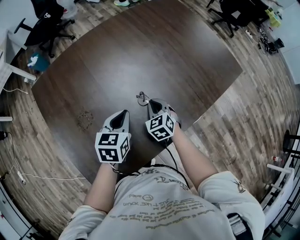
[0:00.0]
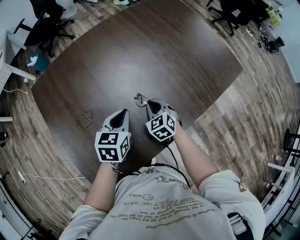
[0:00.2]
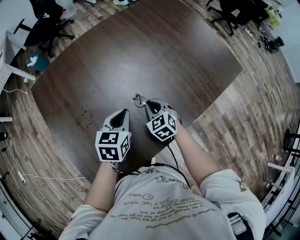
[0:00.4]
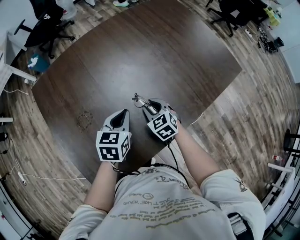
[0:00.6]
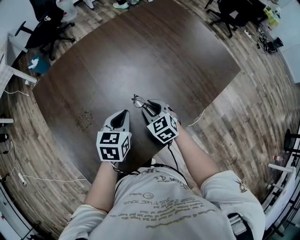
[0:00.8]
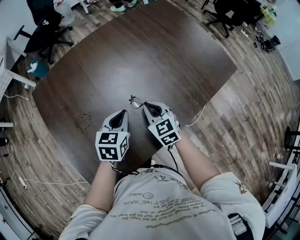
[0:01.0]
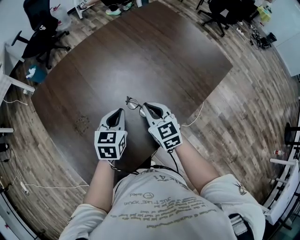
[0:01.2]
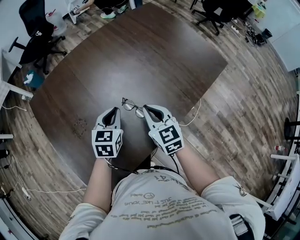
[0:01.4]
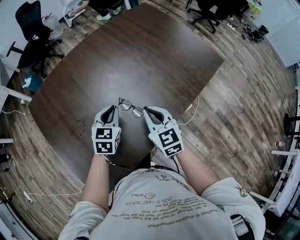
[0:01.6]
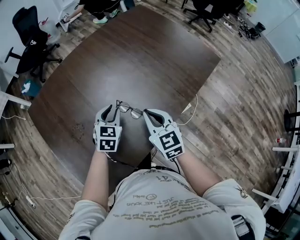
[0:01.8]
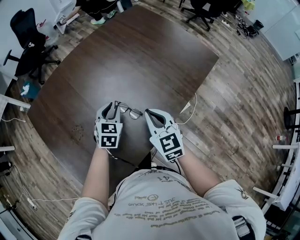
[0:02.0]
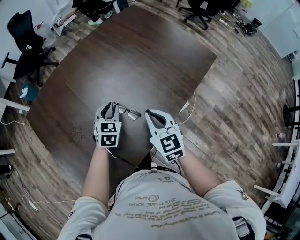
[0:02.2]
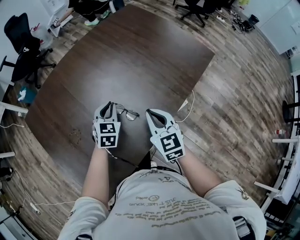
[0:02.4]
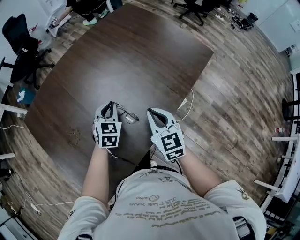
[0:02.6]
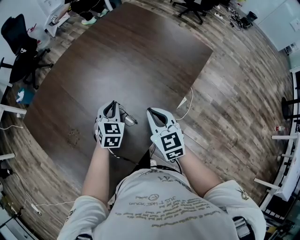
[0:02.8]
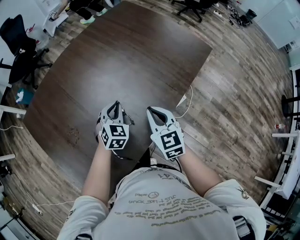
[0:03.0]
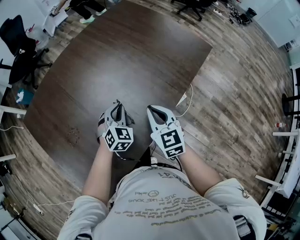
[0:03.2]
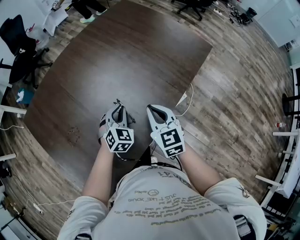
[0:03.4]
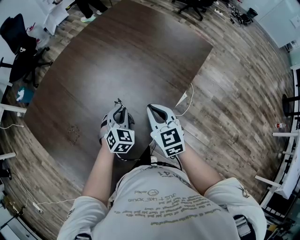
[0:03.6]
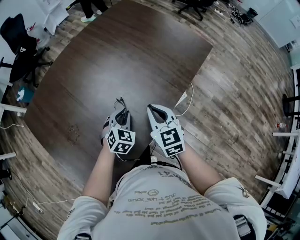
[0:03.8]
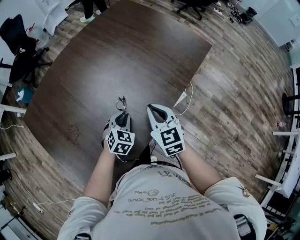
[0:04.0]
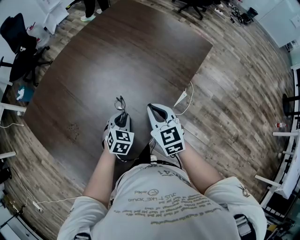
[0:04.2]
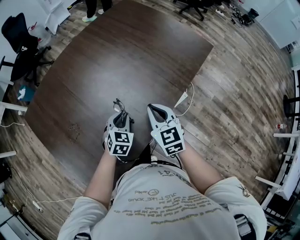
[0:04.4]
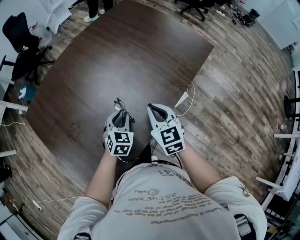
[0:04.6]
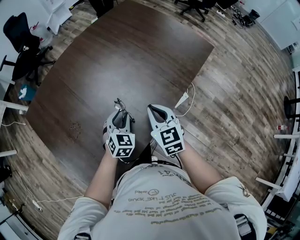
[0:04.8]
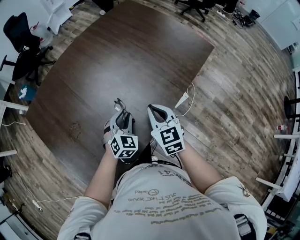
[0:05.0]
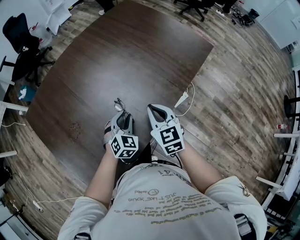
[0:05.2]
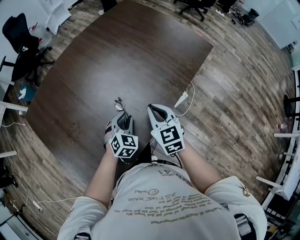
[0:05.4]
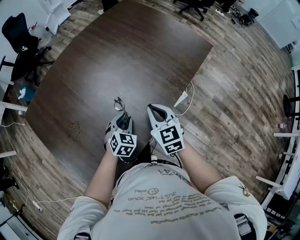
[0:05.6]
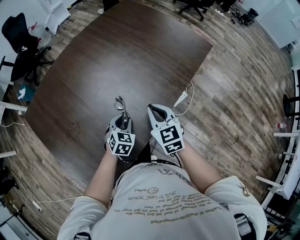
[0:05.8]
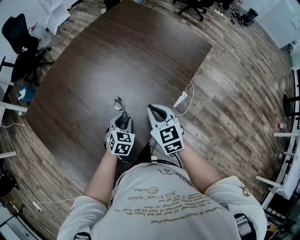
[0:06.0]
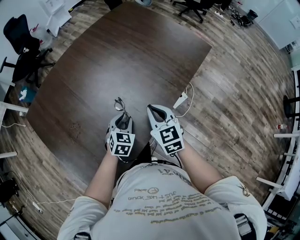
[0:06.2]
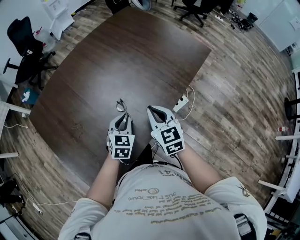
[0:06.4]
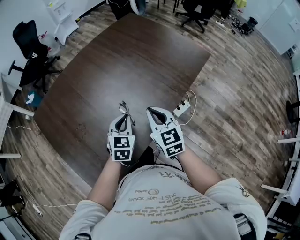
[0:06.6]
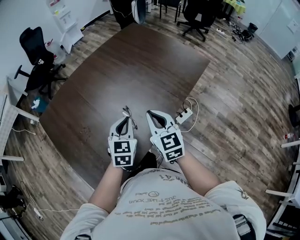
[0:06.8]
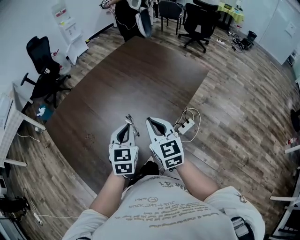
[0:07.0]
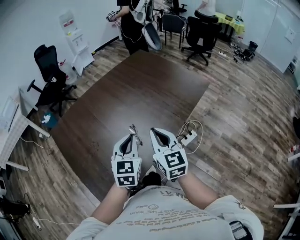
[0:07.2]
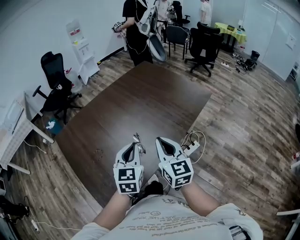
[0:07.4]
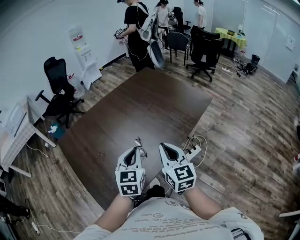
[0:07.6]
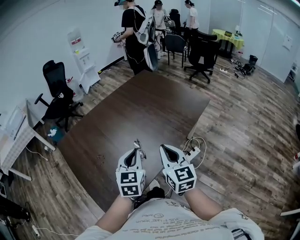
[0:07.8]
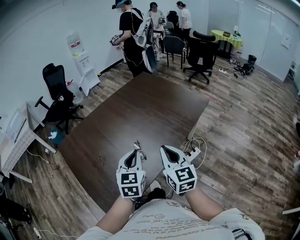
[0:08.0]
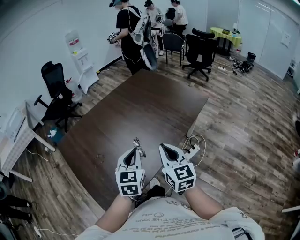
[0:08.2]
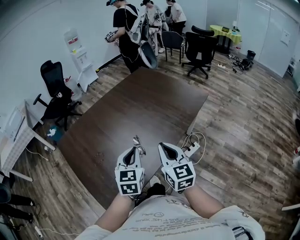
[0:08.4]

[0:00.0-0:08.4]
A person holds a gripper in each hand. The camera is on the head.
0:00.0 to 0:01.4: The right gripper is displaced upward by some 15 cm, swivels about 30 degrees, and opens and closes again.
0:01.4 to 0:02.8: Both grippers travel together to the right, about 5 cm. The left gripper changes its angle by about 20 degrees.
0:02.8 to 0:04.2: The left gripper shifts roughly 10 cm backward and downward.
0:04.2 to 0:05.6: The grippers make only small movements.
0:05.6 to 0:07.0: The right gripper moves upward and backward, approximately 15 cm. The left gripper is displaced upward by some 20 cm, turns by about 30 degrees, and closes its fingers.
0:07.0 to 0:08.4: The two grippers go approximately 5 cm backward.

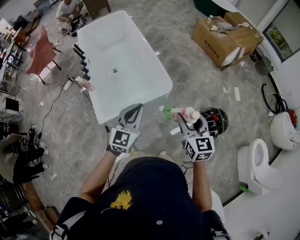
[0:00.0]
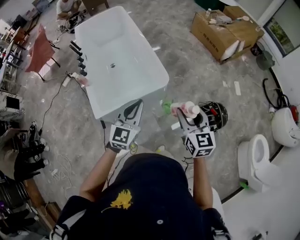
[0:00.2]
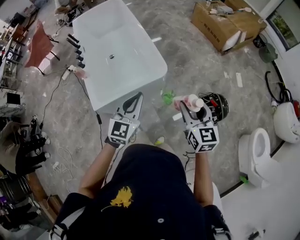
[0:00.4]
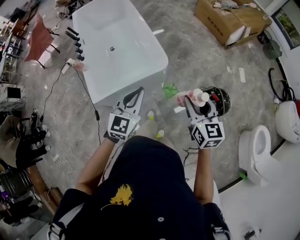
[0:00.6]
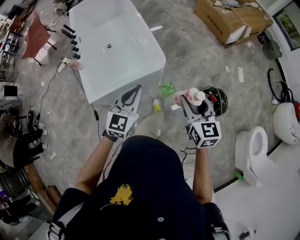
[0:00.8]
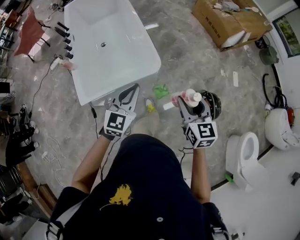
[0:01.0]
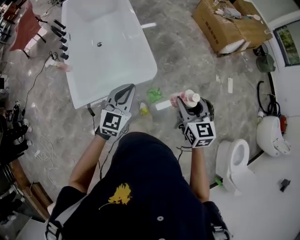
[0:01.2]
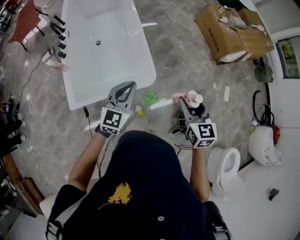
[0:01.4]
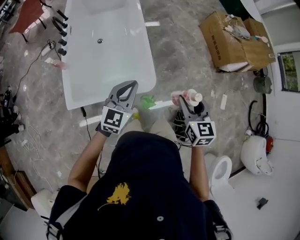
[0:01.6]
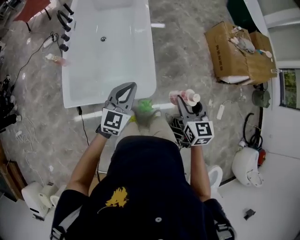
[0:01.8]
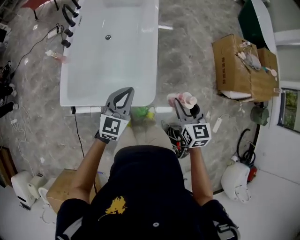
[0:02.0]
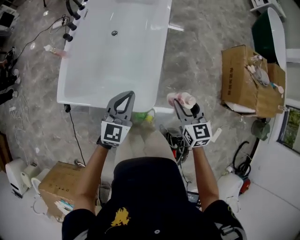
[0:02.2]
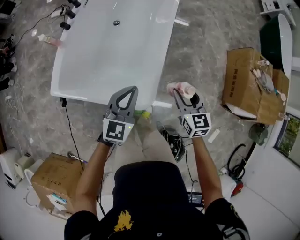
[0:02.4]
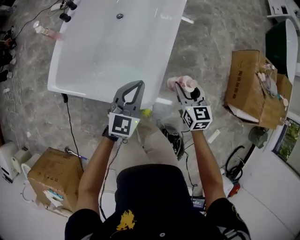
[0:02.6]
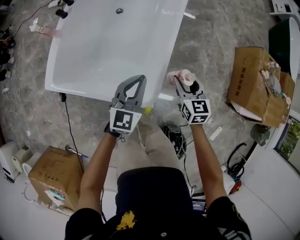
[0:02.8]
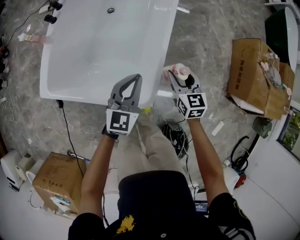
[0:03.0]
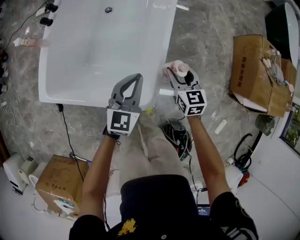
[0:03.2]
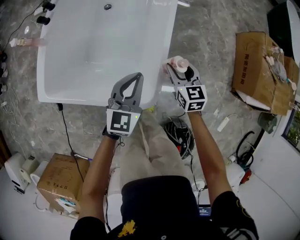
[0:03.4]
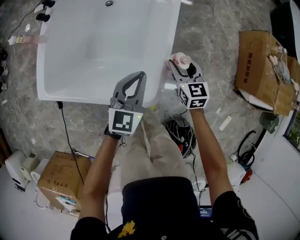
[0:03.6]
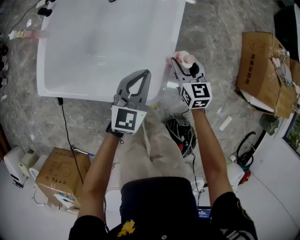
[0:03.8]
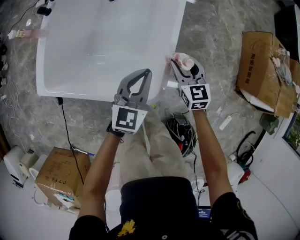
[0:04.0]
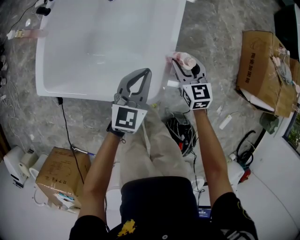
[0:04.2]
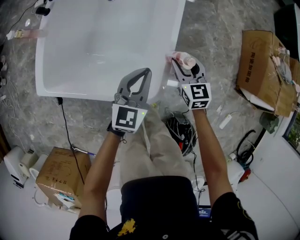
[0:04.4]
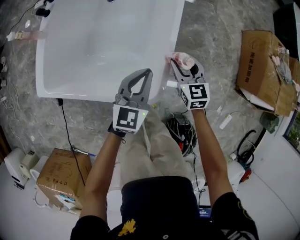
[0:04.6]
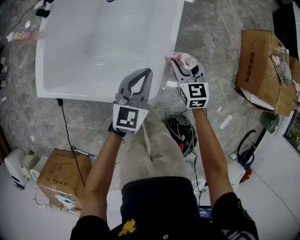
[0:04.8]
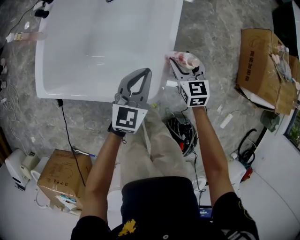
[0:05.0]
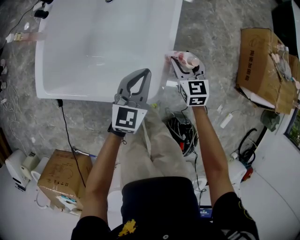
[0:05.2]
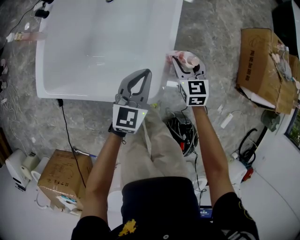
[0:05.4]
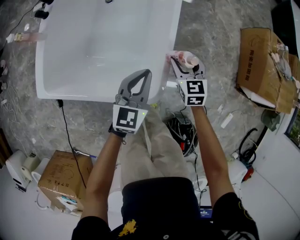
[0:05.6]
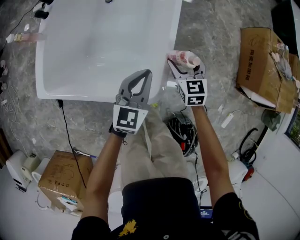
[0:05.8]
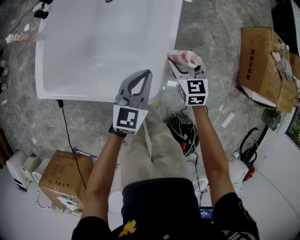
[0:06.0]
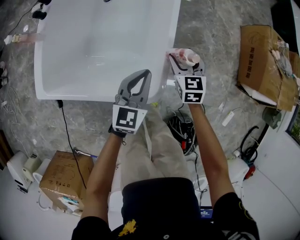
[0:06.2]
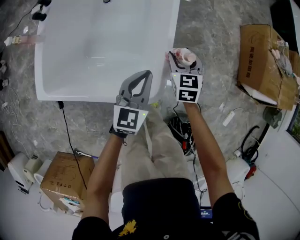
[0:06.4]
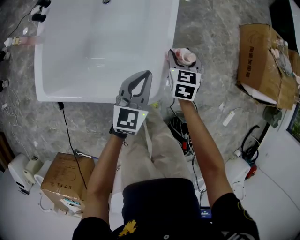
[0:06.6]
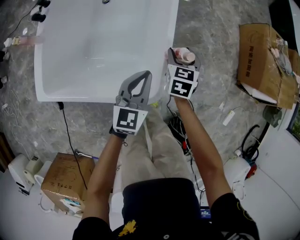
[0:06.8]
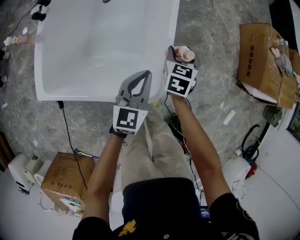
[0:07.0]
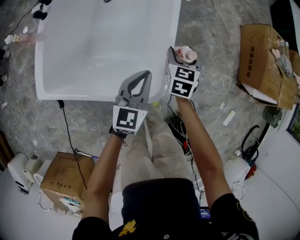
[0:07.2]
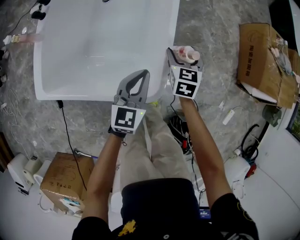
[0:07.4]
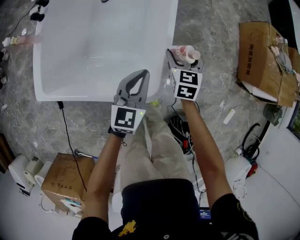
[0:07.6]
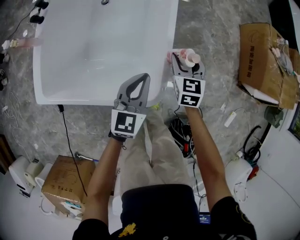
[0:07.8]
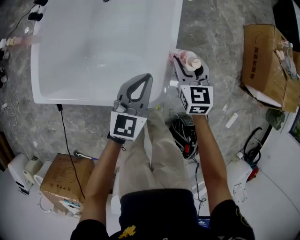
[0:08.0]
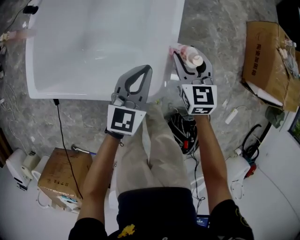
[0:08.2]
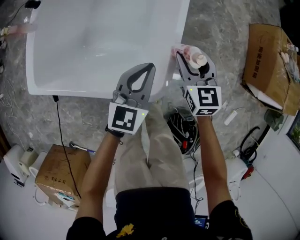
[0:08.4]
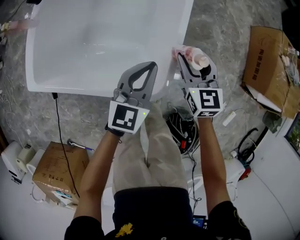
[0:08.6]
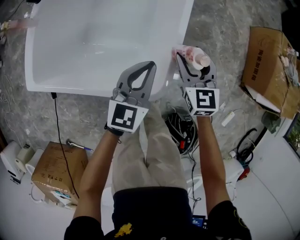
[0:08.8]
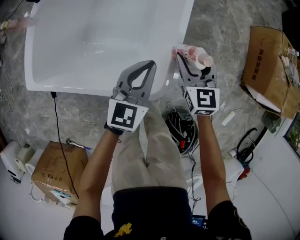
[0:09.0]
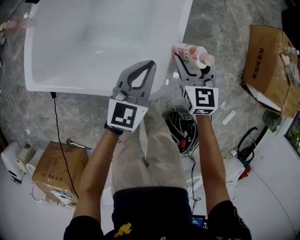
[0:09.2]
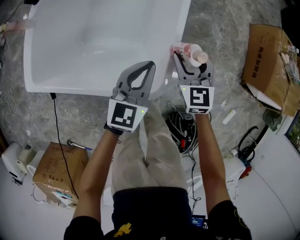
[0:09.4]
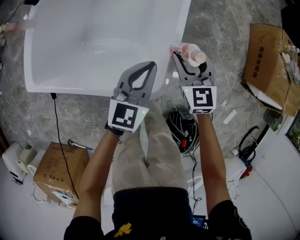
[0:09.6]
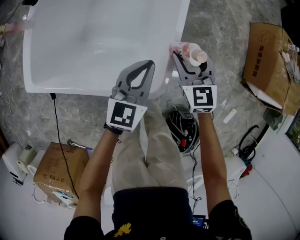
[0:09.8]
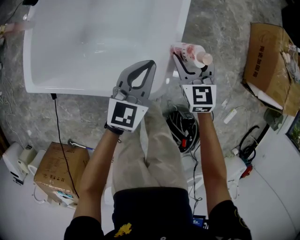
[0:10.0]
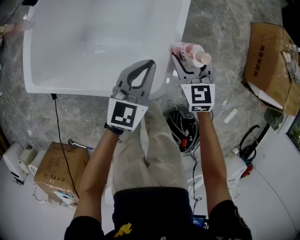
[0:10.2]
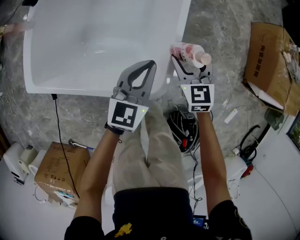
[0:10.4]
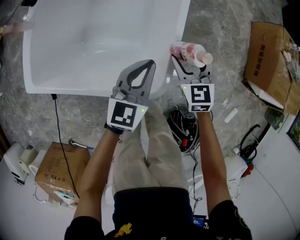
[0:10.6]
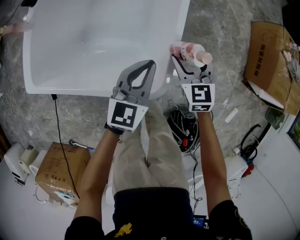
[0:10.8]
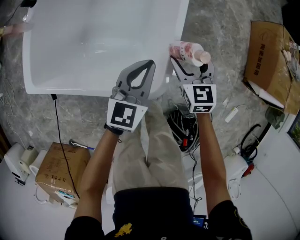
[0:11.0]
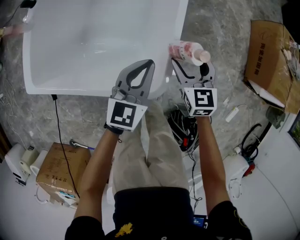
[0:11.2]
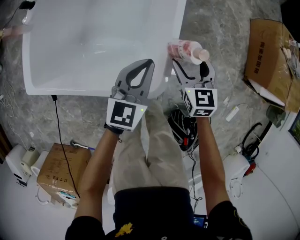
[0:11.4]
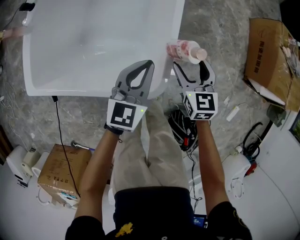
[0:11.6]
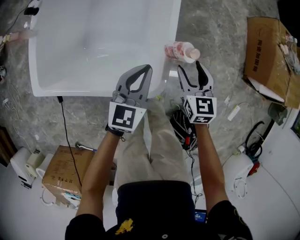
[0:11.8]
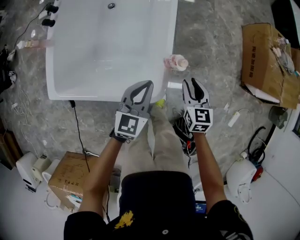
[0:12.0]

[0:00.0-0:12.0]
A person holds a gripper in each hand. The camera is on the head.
0:00.0 to 0:01.6: Both grippers travel together forward, about 25 cm.
0:01.6 to 0:03.0: The left gripper is displaced downward by approximately 20 cm, and swivels some 30 degrees, while the right gripper changes place by roughly 40 cm, and swivels roughly 30 degrees.
0:03.0 to 0:04.4: Both grippers move downward, approximately 5 cm.
0:04.4 to 0:06.0: The right gripper opens its fingers.
0:09.0 to 0:10.4: The grippers move only a little.
0:10.4 to 0:12.0: The left gripper shifts about 10 cm upward; the right gripper goes roughly 15 cm upward, to the right and backward, turns by approximately 20 degrees, and closes its fingers.

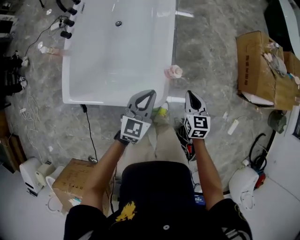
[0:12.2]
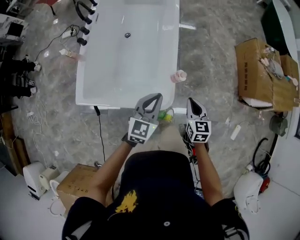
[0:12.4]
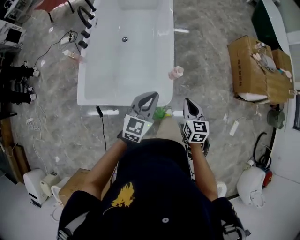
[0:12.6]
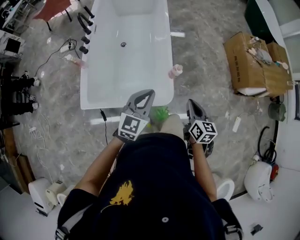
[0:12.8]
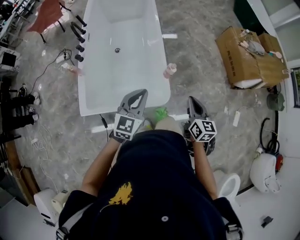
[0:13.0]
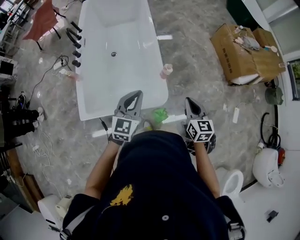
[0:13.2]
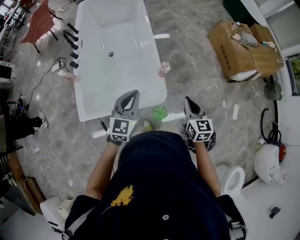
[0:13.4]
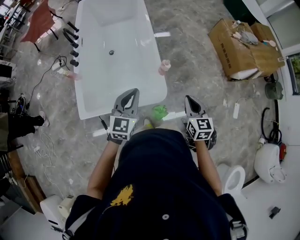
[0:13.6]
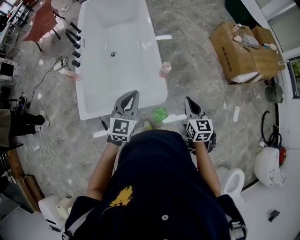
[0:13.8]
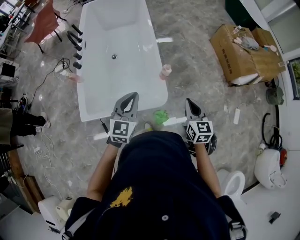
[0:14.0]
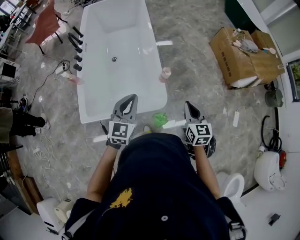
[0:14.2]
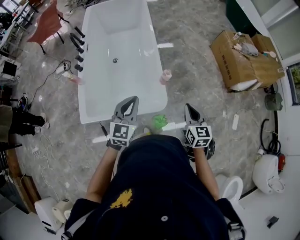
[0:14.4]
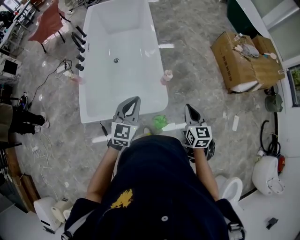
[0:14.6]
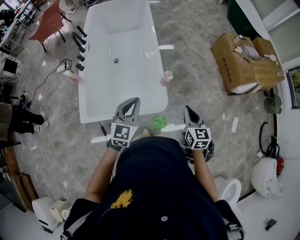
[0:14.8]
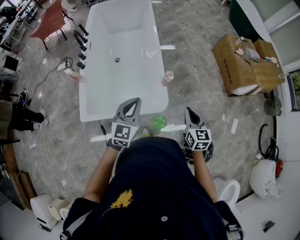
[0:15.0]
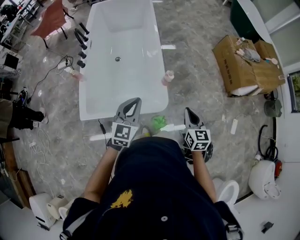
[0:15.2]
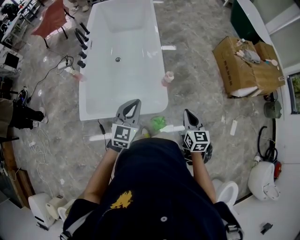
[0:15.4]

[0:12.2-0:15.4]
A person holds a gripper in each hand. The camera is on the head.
0:12.2 to 0:13.8: The right gripper shifts some 25 cm upward and backward. The left gripper moves upward, backward and to the left, roughly 20 cm.
0:13.8 to 0:15.4: The grippers stay close to where they were, moving slightly.
